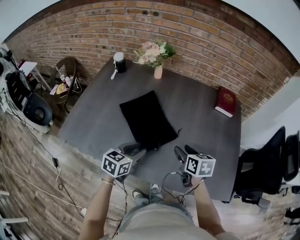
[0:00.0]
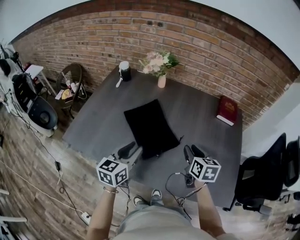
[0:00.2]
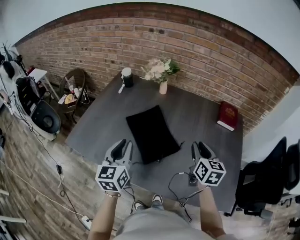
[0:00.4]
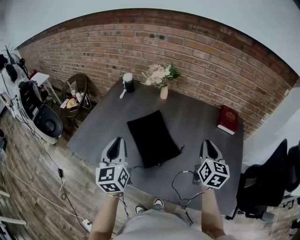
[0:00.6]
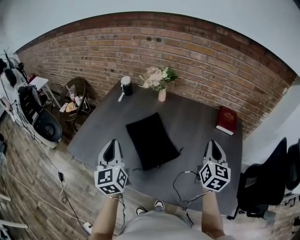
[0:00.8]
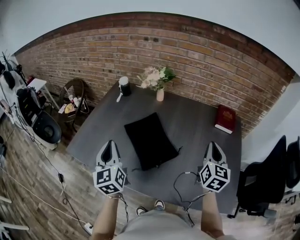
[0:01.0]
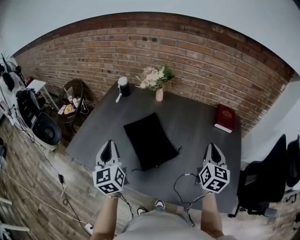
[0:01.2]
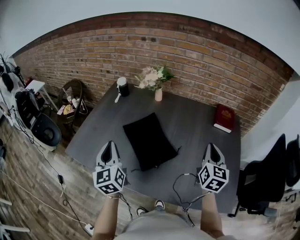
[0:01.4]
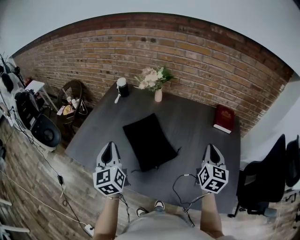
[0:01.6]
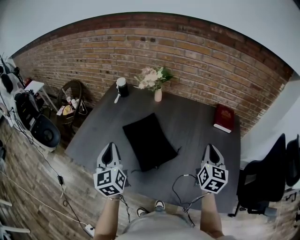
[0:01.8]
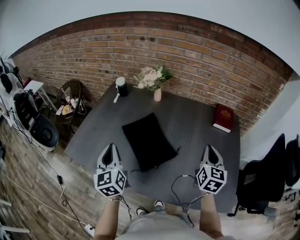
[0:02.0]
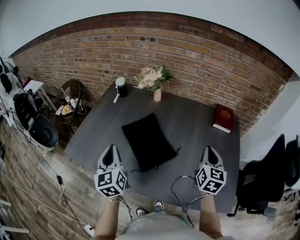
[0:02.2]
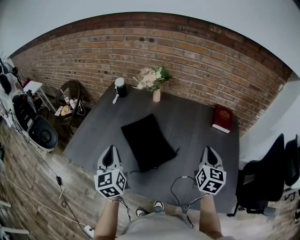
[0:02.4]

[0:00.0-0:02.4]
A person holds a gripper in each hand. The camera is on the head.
0:00.0 to 0:01.2: The left gripper shifts some 20 cm upward and to the left, rotates about 60 degrees, and closes its fingers. Meanwhile the right gripper shifts roughly 20 cm upward and to the right, changes its angle by about 40 degrees, and closes.
0:01.2 to 0:02.4: The grippers stay close to where they were, moving slightly.

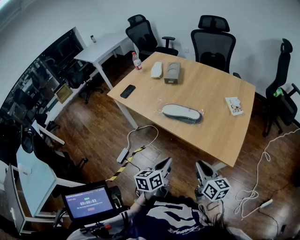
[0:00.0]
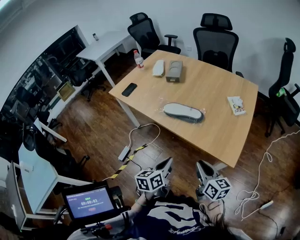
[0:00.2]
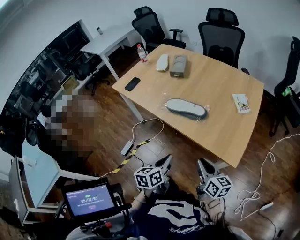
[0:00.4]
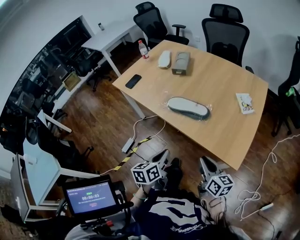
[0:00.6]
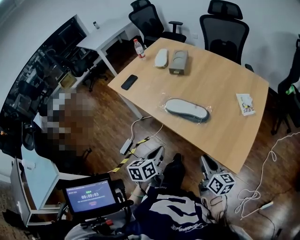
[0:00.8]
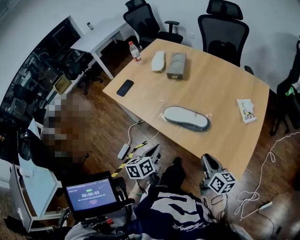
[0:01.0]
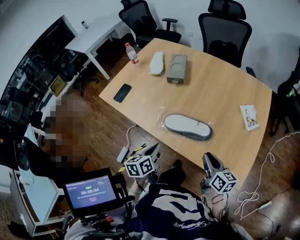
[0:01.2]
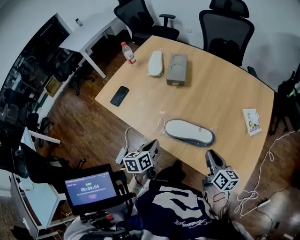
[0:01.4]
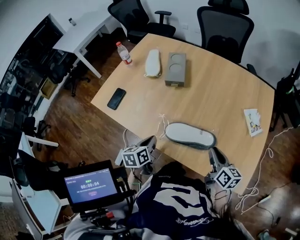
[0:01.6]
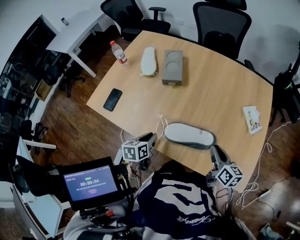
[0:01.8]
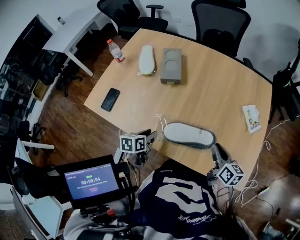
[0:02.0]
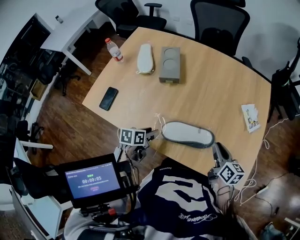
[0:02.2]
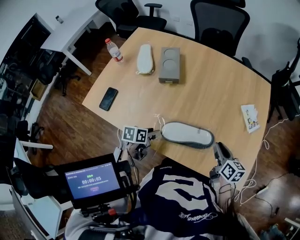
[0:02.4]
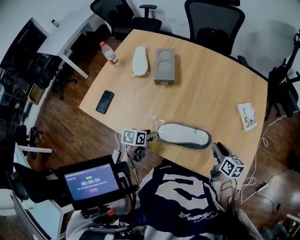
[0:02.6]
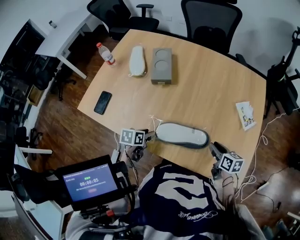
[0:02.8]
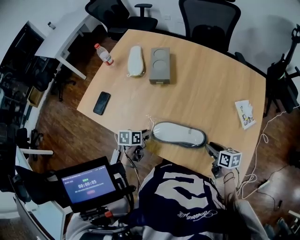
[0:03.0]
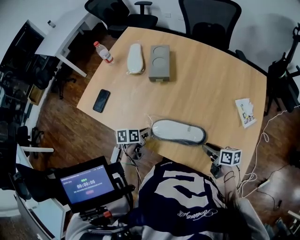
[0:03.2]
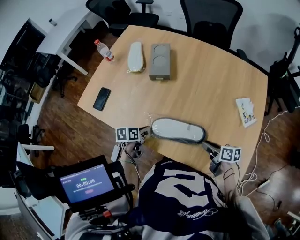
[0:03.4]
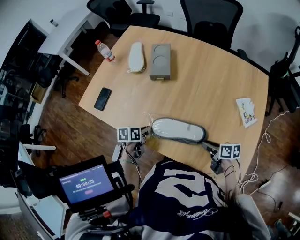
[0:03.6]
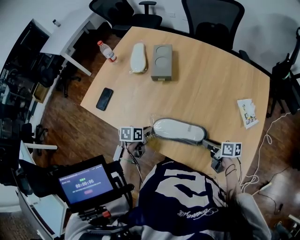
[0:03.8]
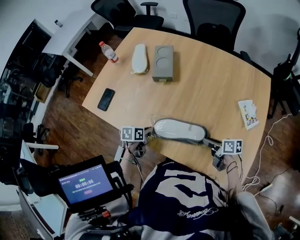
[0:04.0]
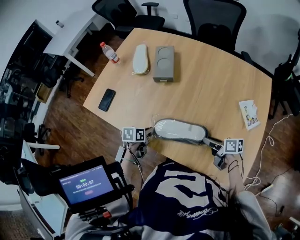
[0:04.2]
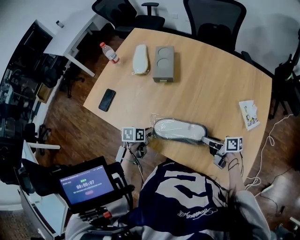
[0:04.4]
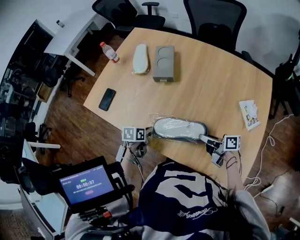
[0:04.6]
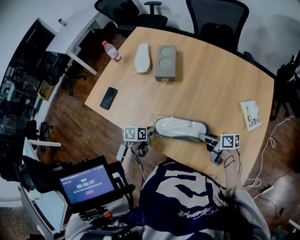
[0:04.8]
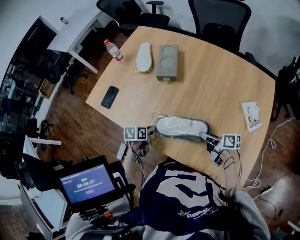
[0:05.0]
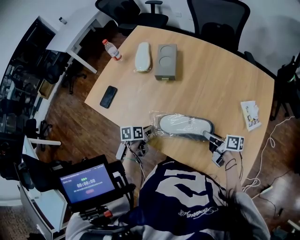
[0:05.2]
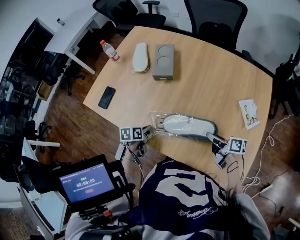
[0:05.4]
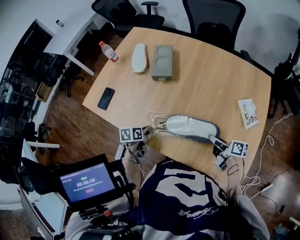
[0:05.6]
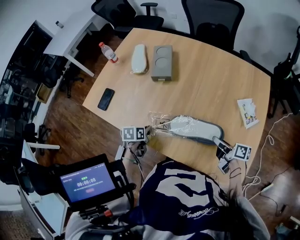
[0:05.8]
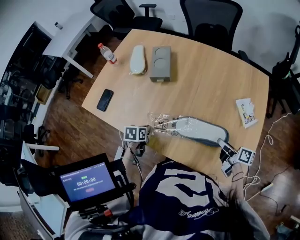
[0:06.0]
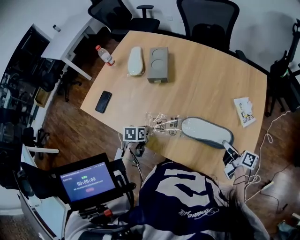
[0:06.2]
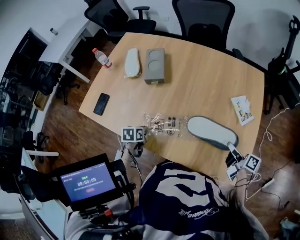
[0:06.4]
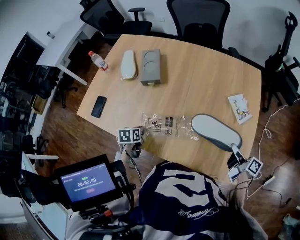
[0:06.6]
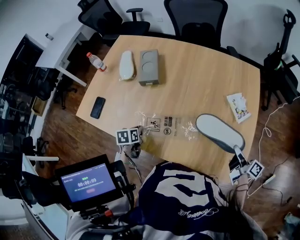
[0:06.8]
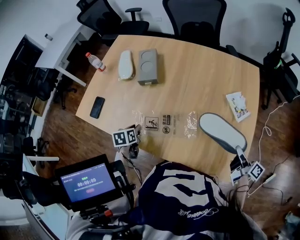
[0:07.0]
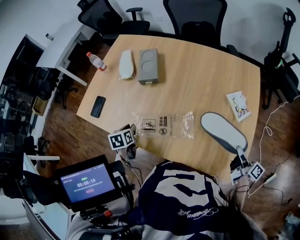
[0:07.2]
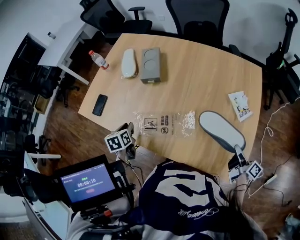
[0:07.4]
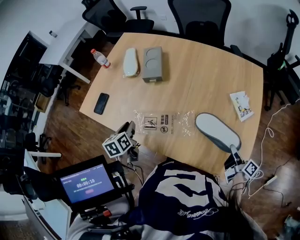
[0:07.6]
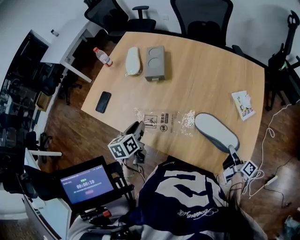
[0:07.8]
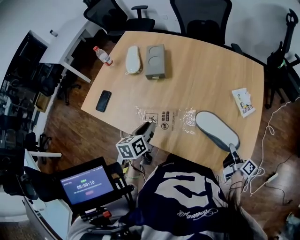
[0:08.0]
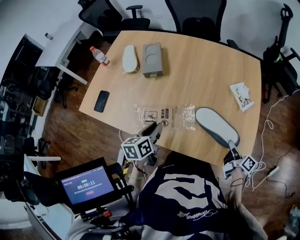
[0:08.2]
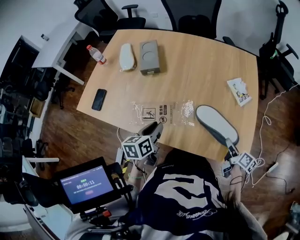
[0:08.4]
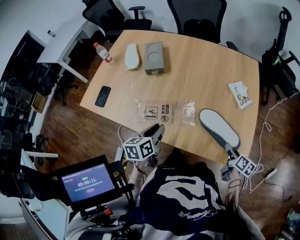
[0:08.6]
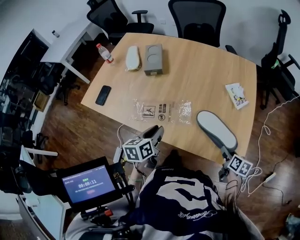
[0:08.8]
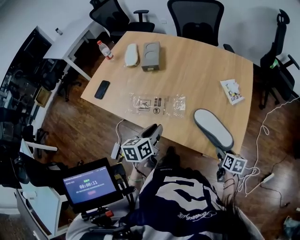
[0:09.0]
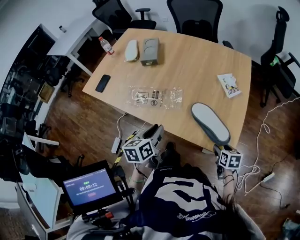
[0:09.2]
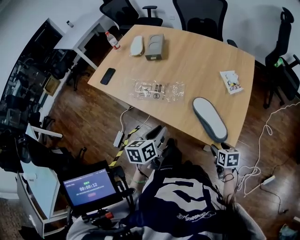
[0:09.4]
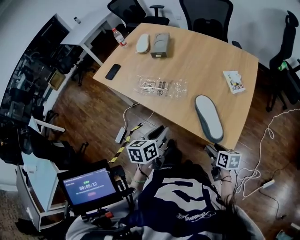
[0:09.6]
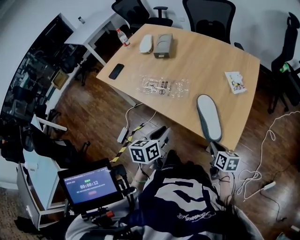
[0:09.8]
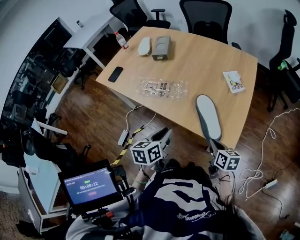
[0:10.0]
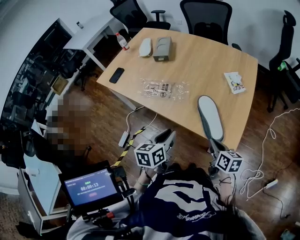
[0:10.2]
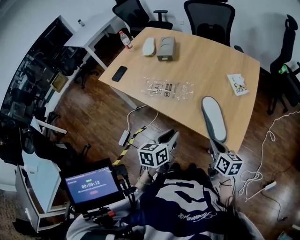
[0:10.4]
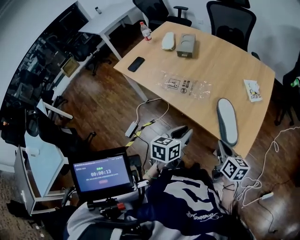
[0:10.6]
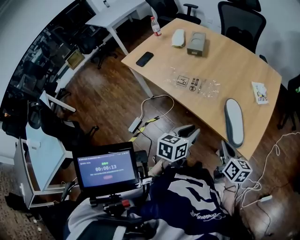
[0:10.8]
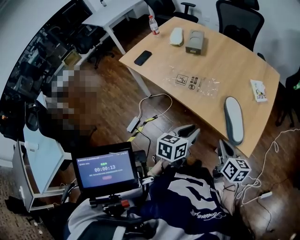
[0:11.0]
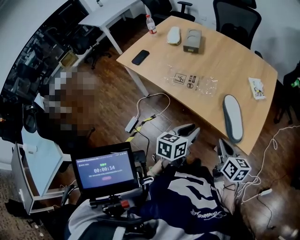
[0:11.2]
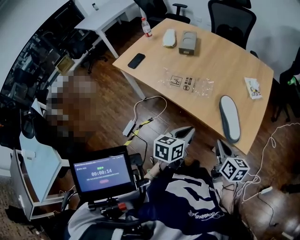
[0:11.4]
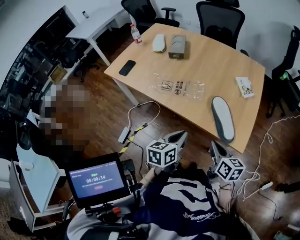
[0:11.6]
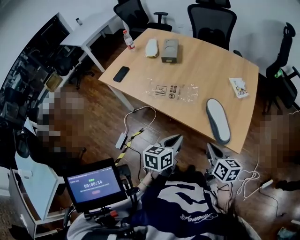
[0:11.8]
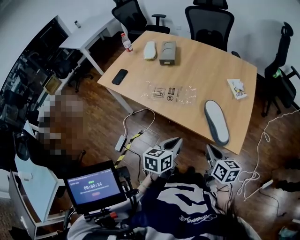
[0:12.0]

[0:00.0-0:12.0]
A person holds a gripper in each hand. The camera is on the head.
0:00.0 to 0:01.6: The two grippers go some 35 cm forward.
0:01.6 to 0:03.0: The left gripper travels downward and forward by roughly 10 cm, swivels about 20 degrees, and opens and closes again; the right gripper moves downward, some 10 cm, and swivels roughly 20 degrees.
0:03.0 to 0:04.4: The right gripper shifts by about 5 cm, and turns by some 40 degrees.
0:04.4 to 0:06.0: The right gripper shifts about 10 cm to the right.
0:06.0 to 0:07.6: The left gripper shifts some 10 cm upward, rotates some 30 degrees, and opens its fingers. Meanwhile the right gripper shifts roughly 15 cm to the right and backward, and rotates roughly 30 degrees.
0:07.6 to 0:09.0: The right gripper is displaced backward by roughly 10 cm, tips its fingers downward by about 40 degrees, and opens its fingers. The left gripper travels to the right and backward by approximately 25 cm, and rotates about 20 degrees.
0:09.0 to 0:10.4: The right gripper is displaced upward, to the left and backward by about 15 cm, swivels some 30 degrees, and closes its fingers. The left gripper goes some 15 cm backward and to the right.
0:10.4 to 0:12.0: The left gripper closes its fingers; the right gripper moves to the left, approximately 10 cm.

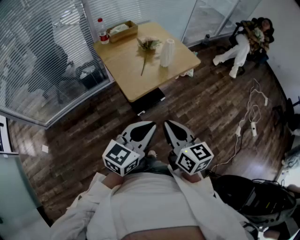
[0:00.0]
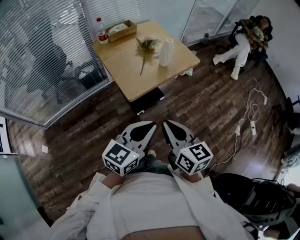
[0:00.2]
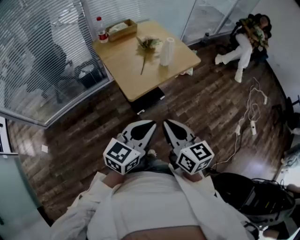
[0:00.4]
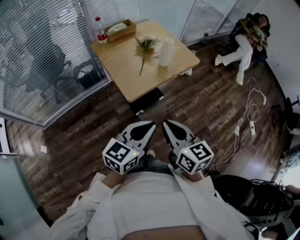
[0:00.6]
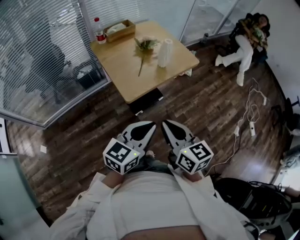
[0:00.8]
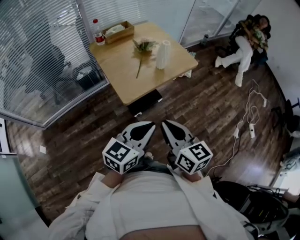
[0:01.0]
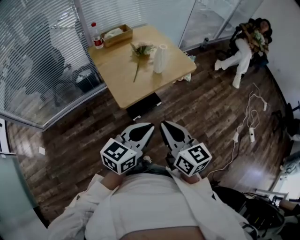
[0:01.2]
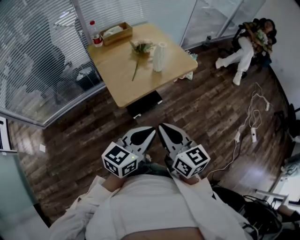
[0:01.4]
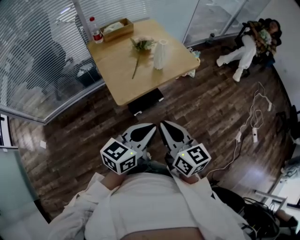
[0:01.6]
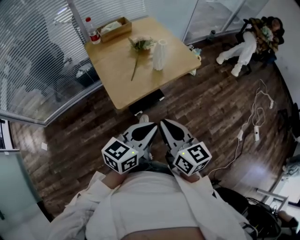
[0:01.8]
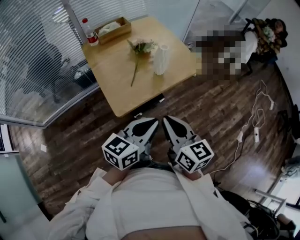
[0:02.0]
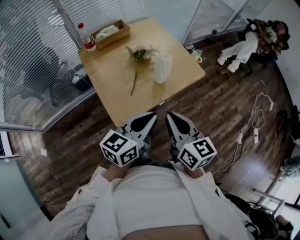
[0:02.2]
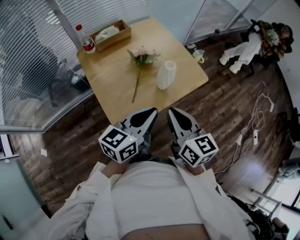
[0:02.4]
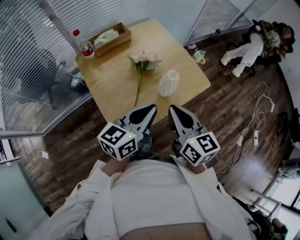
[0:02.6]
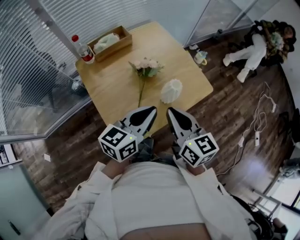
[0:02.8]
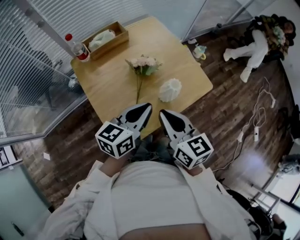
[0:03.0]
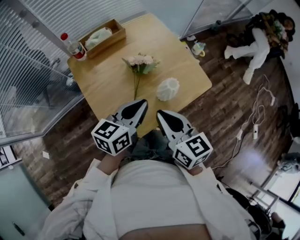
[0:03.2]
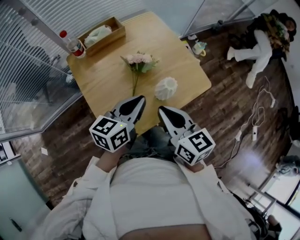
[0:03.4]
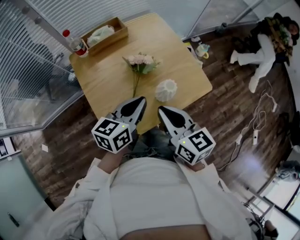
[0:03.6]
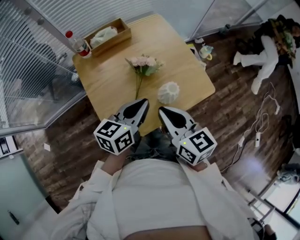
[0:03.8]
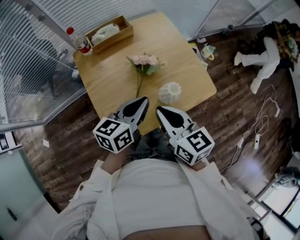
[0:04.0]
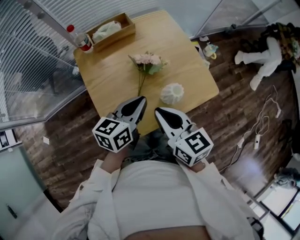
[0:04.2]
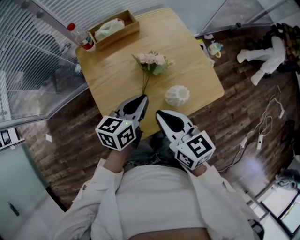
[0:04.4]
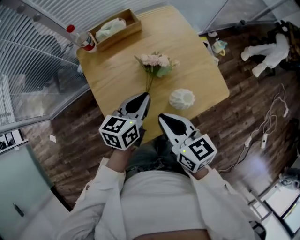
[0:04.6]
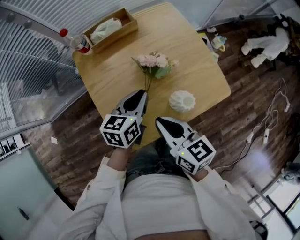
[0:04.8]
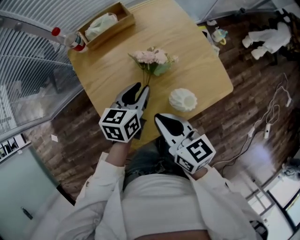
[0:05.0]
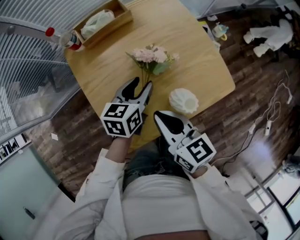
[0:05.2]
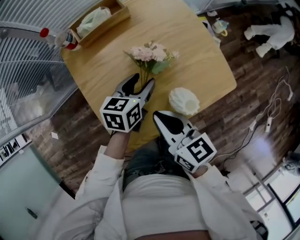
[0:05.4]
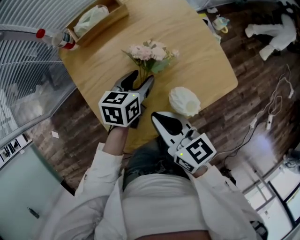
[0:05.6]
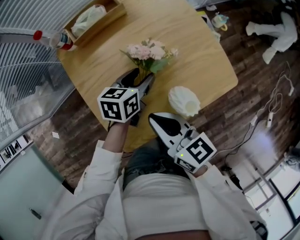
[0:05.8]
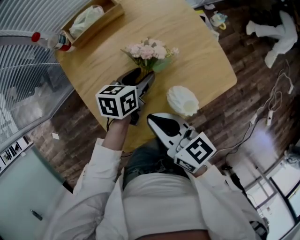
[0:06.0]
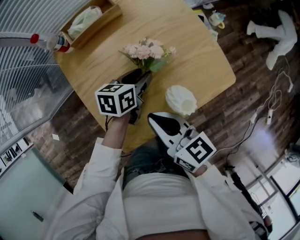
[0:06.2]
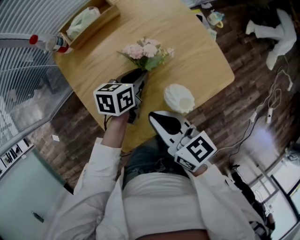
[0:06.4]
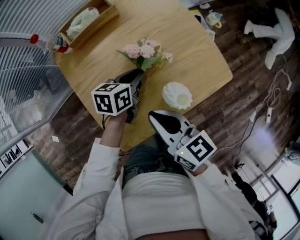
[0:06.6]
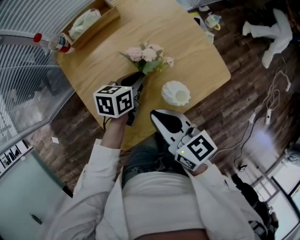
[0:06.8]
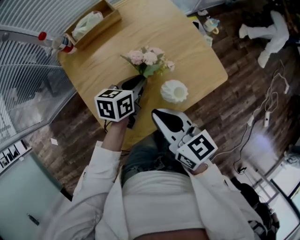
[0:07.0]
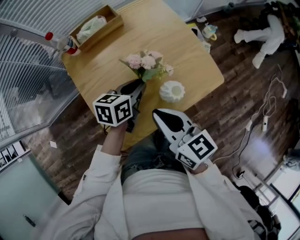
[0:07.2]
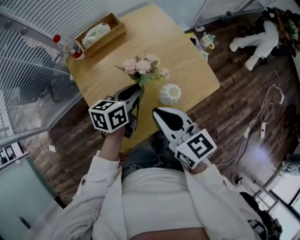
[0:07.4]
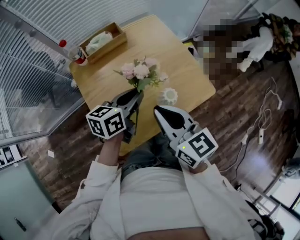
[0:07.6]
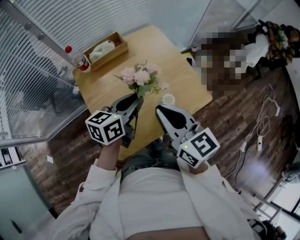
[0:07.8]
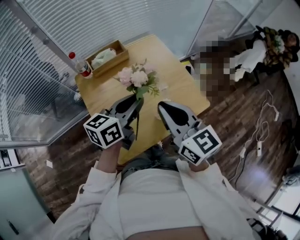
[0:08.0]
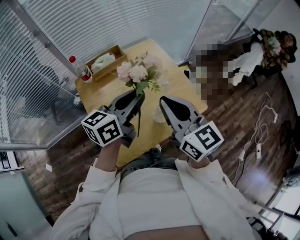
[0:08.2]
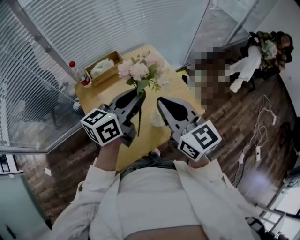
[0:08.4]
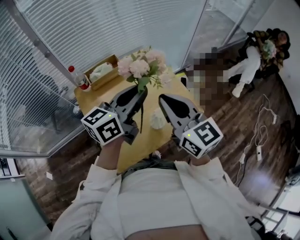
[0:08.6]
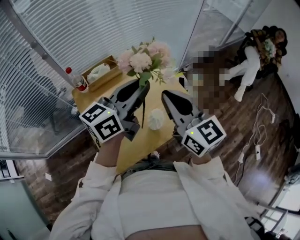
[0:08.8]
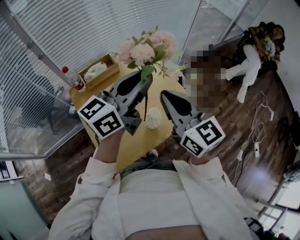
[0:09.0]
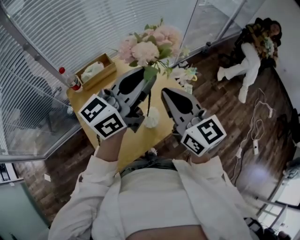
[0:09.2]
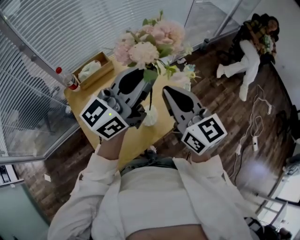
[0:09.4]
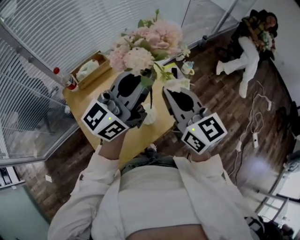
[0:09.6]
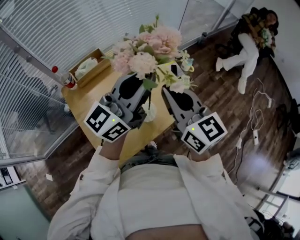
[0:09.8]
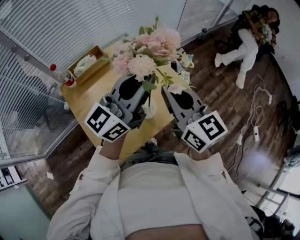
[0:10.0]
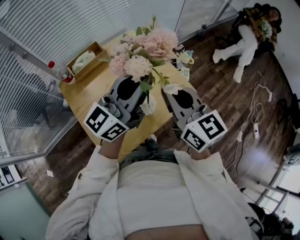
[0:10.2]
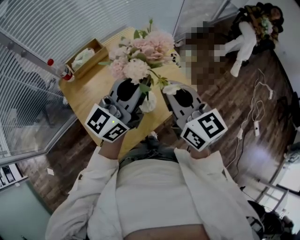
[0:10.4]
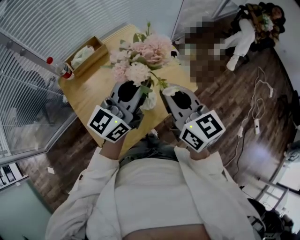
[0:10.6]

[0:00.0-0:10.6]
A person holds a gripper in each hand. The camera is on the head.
0:00.0 to 0:01.6: The right gripper shifts approximately 5 cm forward; the left gripper shifts some 10 cm to the right and forward.
0:01.6 to 0:03.0: The grippers both shift forward by about 30 cm.
0:03.0 to 0:04.6: The right gripper ends up roughly 5 cm from where it was. The left gripper moves forward and downward, roughly 10 cm.
0:04.6 to 0:06.0: The left gripper moves downward and forward, some 15 cm, and opens up.
0:06.0 to 0:07.6: Both grippers travel together upward, roughly 10 cm. The left gripper closes its fingers.
0:07.6 to 0:09.0: The left gripper is displaced upward by some 20 cm, and tilts its fingers approximately 30 degrees upward, while the right gripper moves upward, to the right and forward, approximately 15 cm.
0:09.0 to 0:10.6: The left gripper shifts about 5 cm downward. Meanwhile the right gripper ends up approximately 5 cm from where it was.
